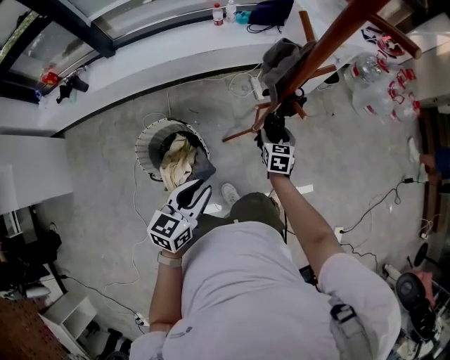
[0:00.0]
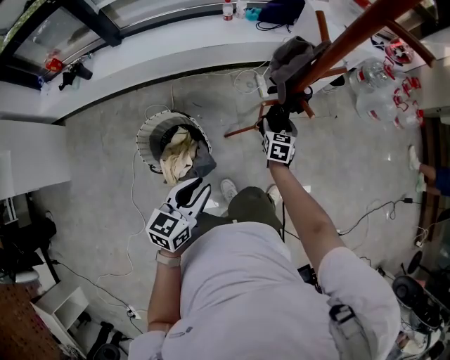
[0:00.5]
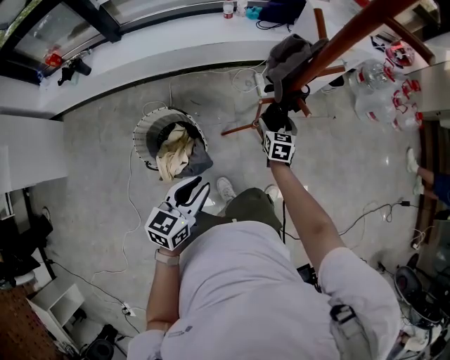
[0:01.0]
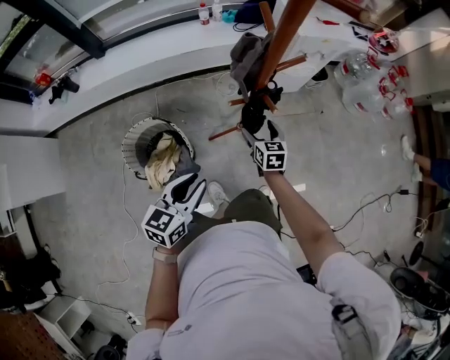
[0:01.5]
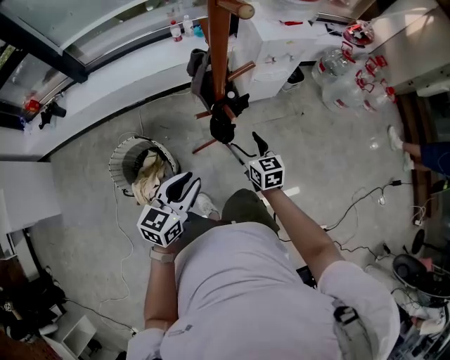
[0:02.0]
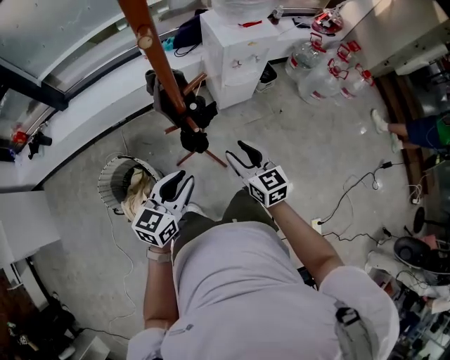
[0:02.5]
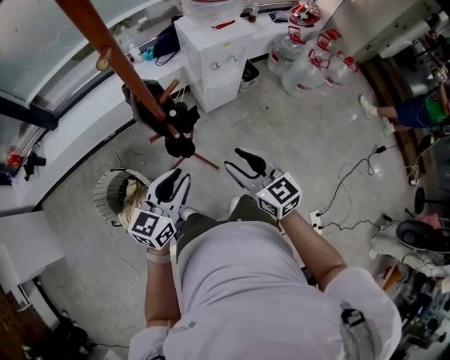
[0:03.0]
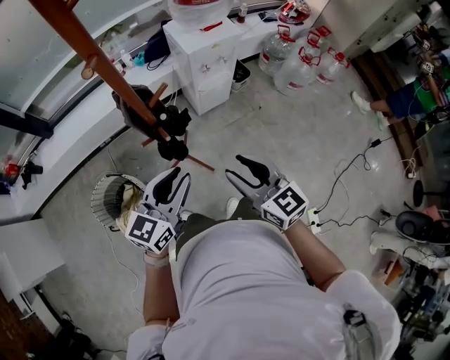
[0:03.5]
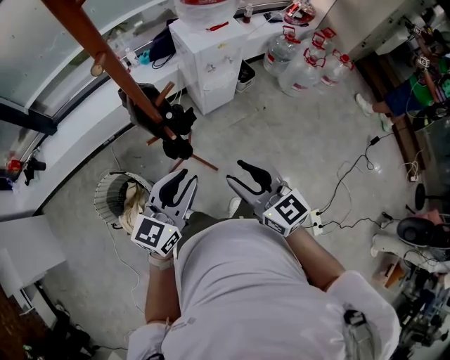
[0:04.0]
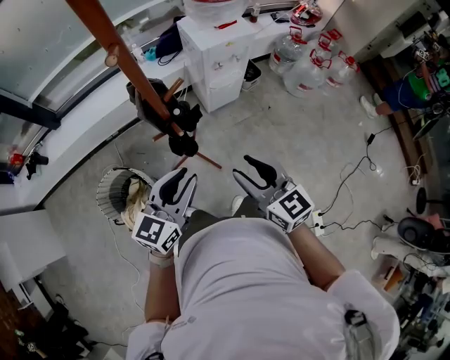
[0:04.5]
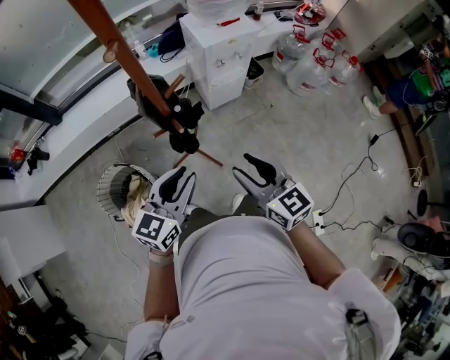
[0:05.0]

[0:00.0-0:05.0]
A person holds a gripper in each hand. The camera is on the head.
0:00.0 to 0:02.5: The right gripper goes approximately 25 cm upward and to the right, and swivels some 30 degrees, while the left gripper goes about 20 cm to the right and forward.
0:02.5 to 0:05.0: The right gripper goes some 10 cm upward and backward; the left gripper heads upward and to the right, covering approximately 10 cm.

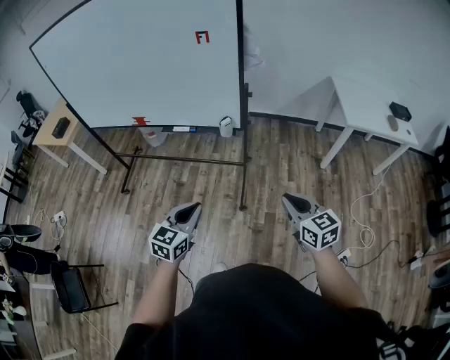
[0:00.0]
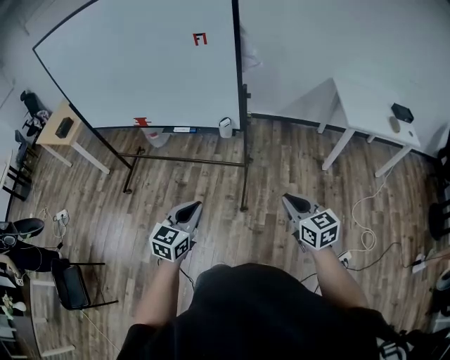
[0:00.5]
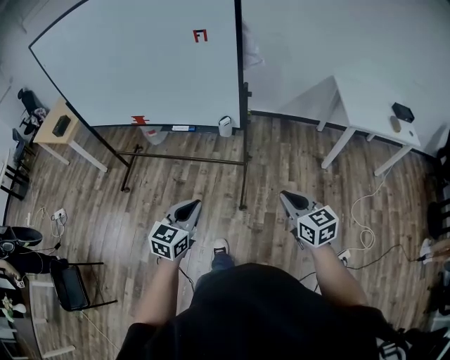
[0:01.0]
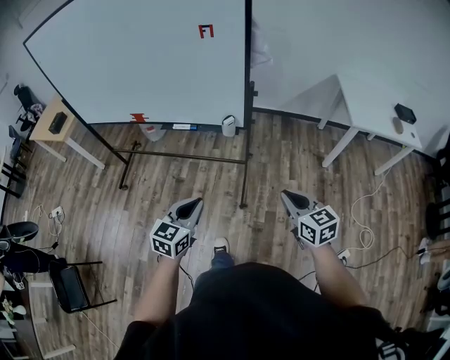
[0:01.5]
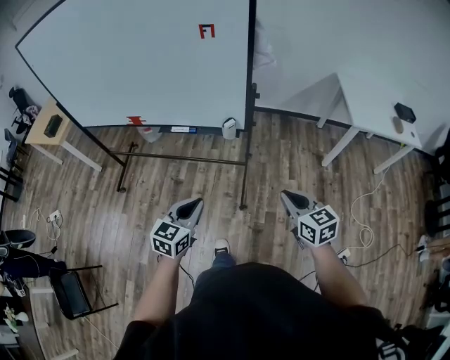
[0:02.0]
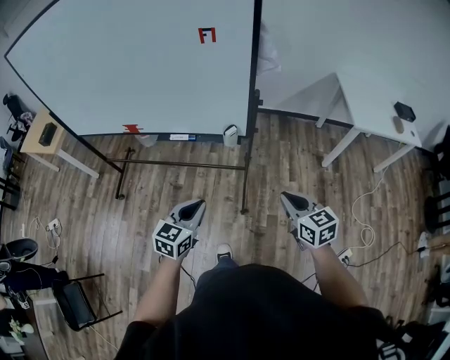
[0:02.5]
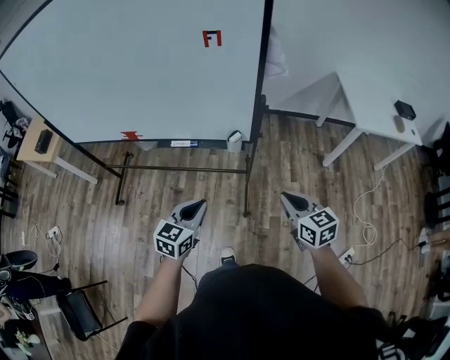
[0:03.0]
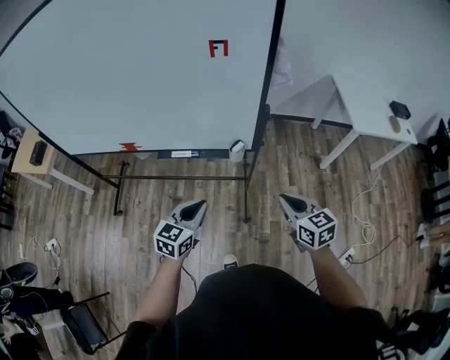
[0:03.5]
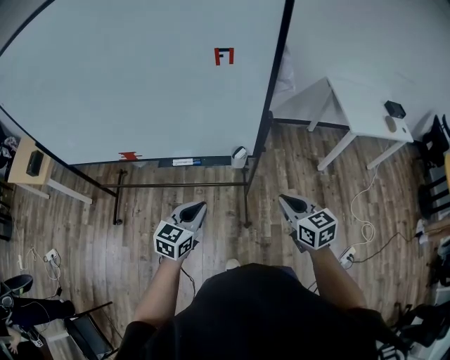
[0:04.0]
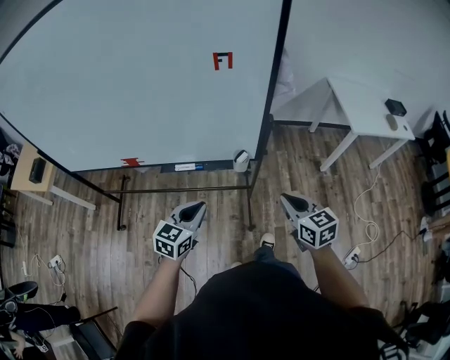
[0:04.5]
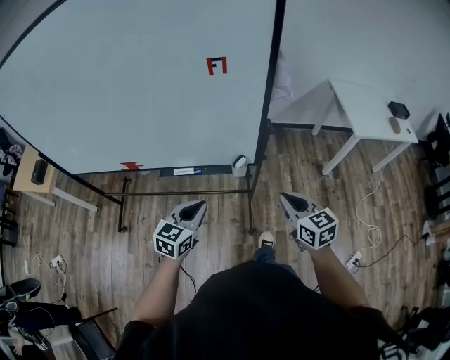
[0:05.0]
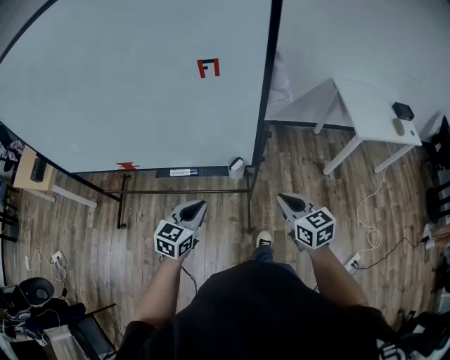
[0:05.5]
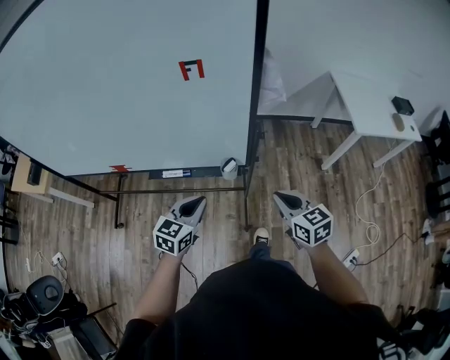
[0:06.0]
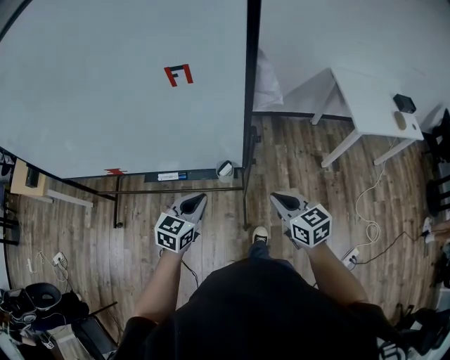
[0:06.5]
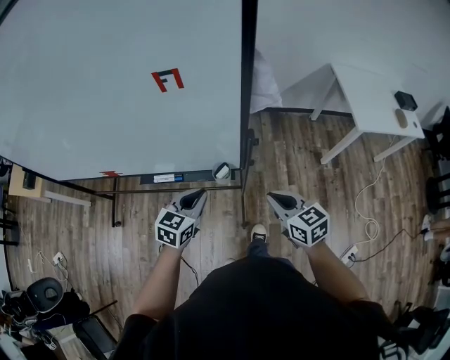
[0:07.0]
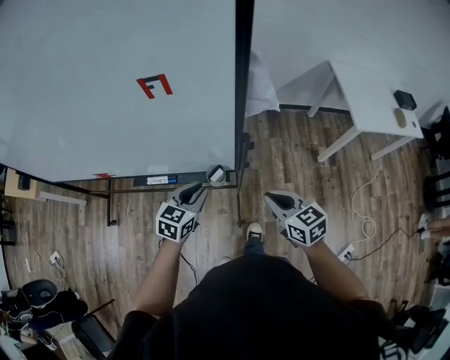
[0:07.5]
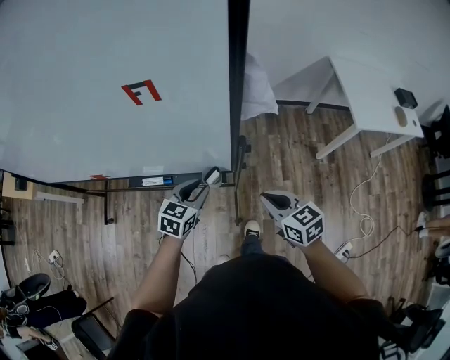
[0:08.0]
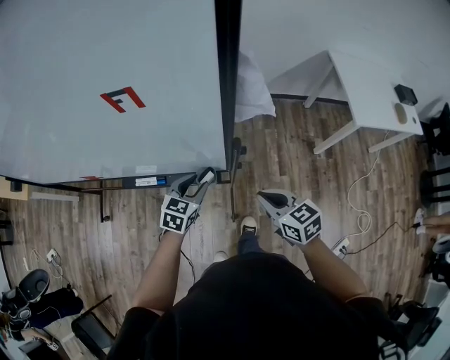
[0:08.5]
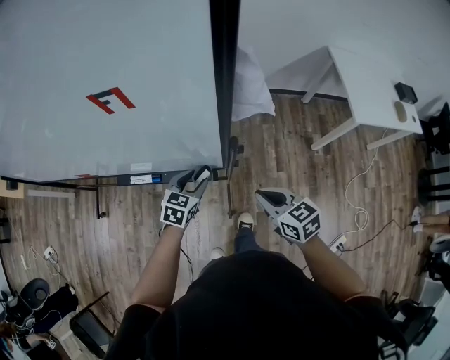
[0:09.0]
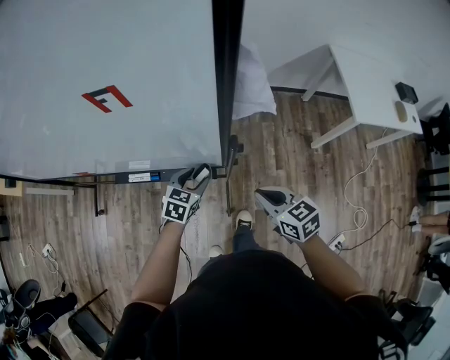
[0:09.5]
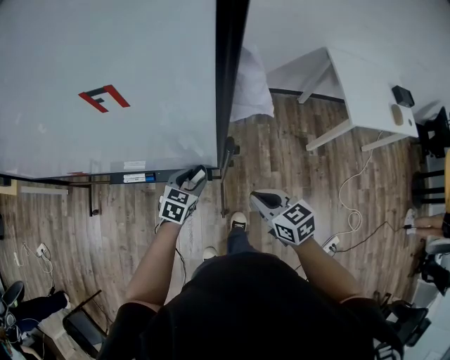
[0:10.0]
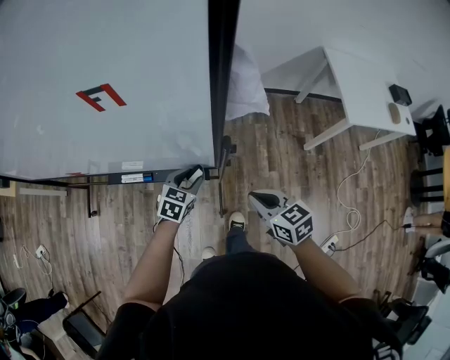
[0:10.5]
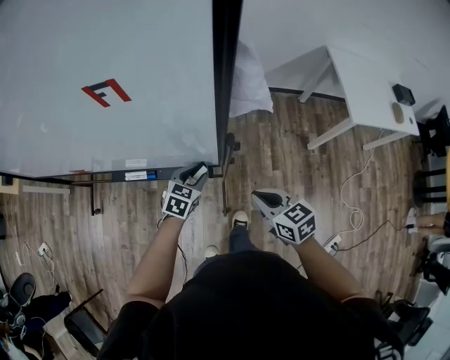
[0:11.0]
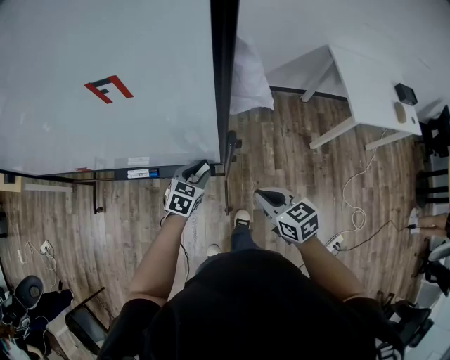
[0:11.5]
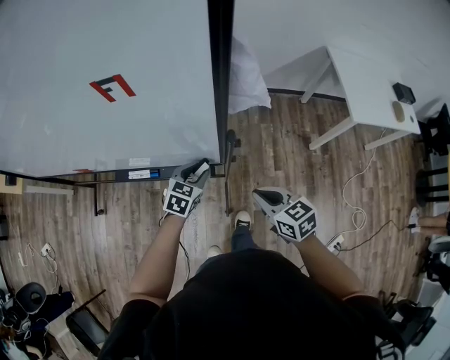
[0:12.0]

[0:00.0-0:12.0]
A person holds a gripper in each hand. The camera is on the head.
0:00.0 to 0:02.0: Both grippers travel together forward, approximately 10 cm.
0:02.0 to 0:04.0: Both grippers move forward and to the left, roughly 20 cm.
0:04.0 to 0:06.0: The left gripper shifts about 10 cm forward and to the right, while the right gripper is displaced forward by roughly 10 cm.
0:06.0 to 0:08.0: The right gripper heads forward, covering about 10 cm; the left gripper heads forward, downward and to the right, covering some 15 cm, and opens.
0:08.0 to 0:10.0: The left gripper is displaced downward by approximately 10 cm, and opens.
0:10.0 to 0:12.0: There are only small adjustments of the grippers.

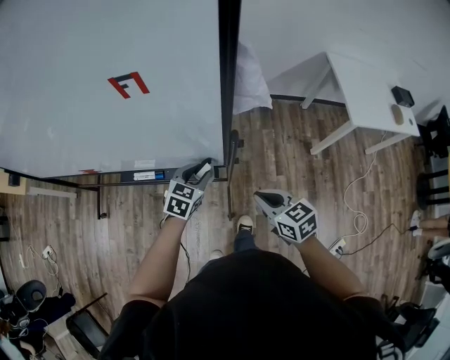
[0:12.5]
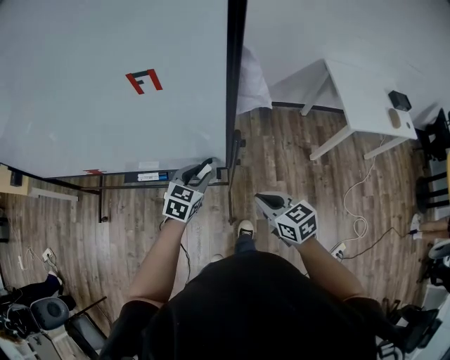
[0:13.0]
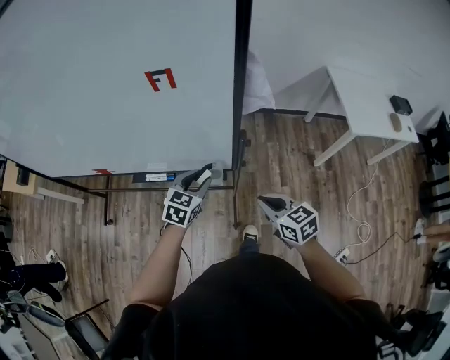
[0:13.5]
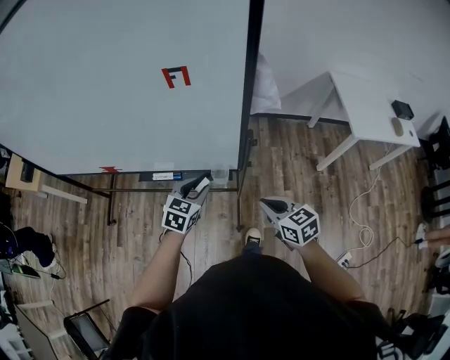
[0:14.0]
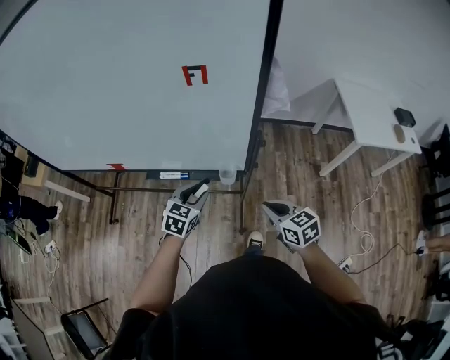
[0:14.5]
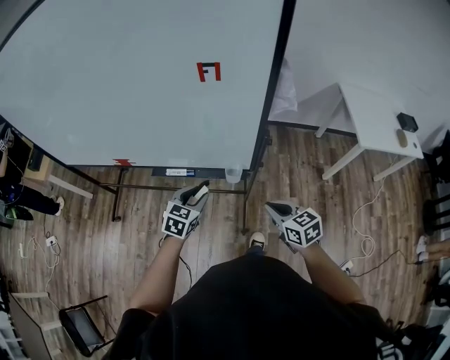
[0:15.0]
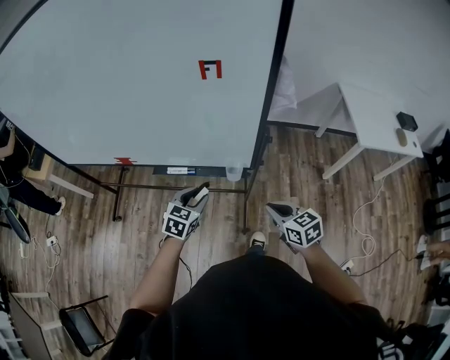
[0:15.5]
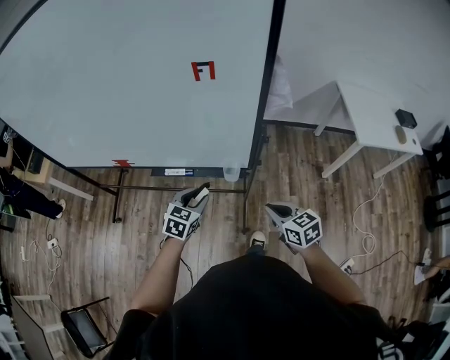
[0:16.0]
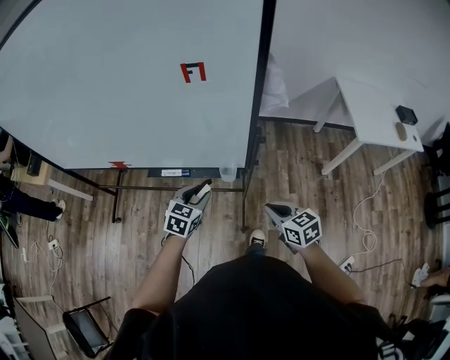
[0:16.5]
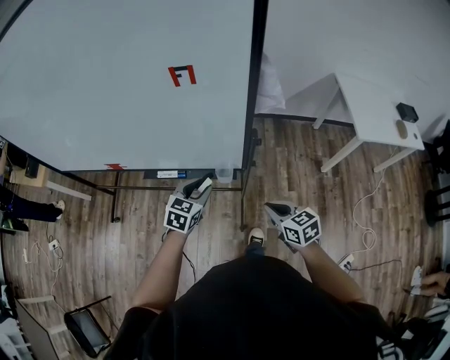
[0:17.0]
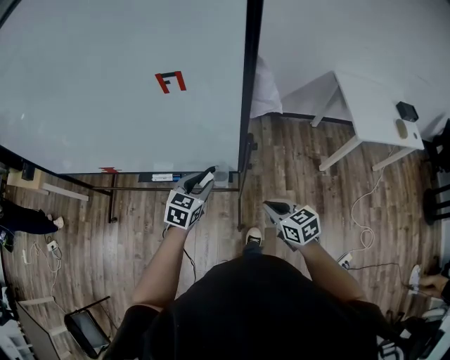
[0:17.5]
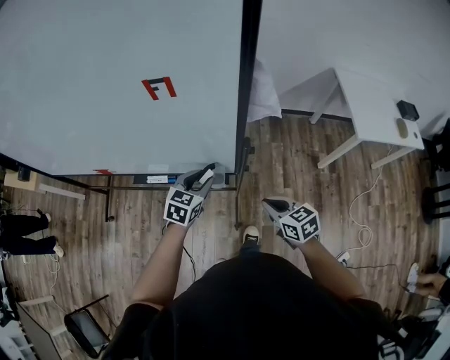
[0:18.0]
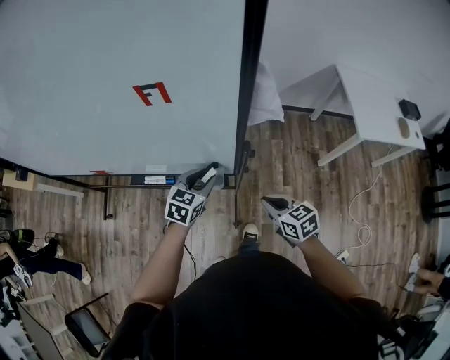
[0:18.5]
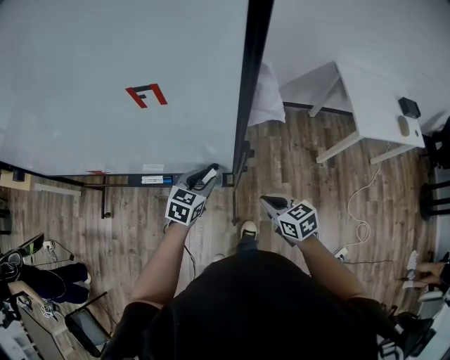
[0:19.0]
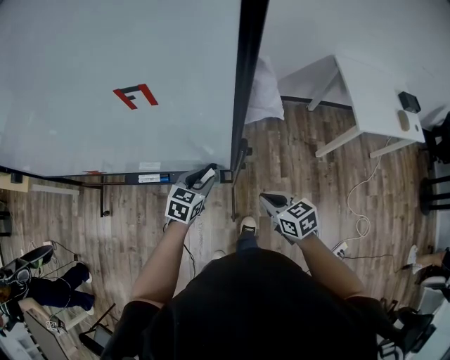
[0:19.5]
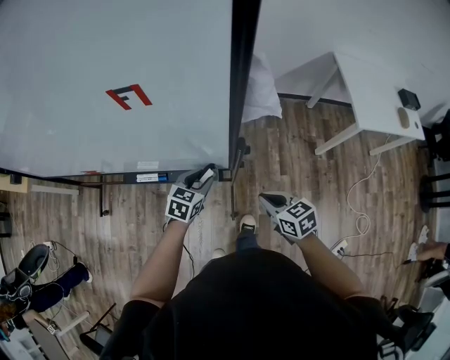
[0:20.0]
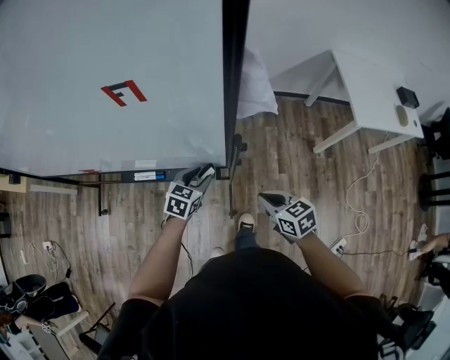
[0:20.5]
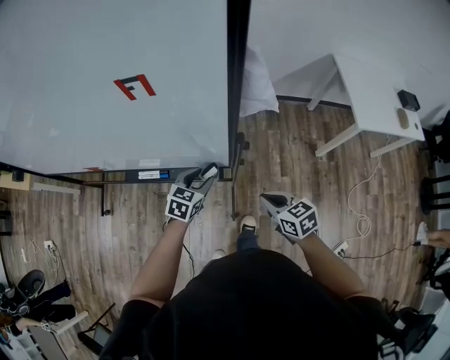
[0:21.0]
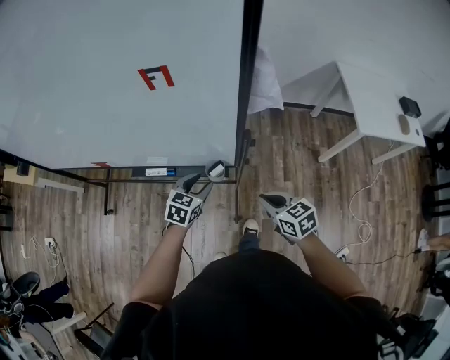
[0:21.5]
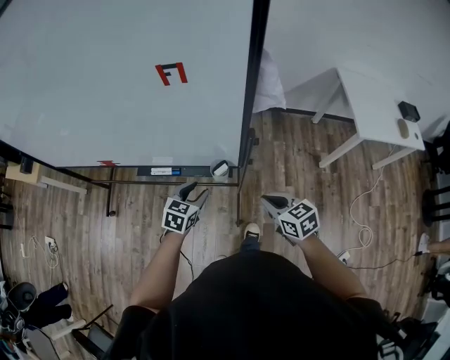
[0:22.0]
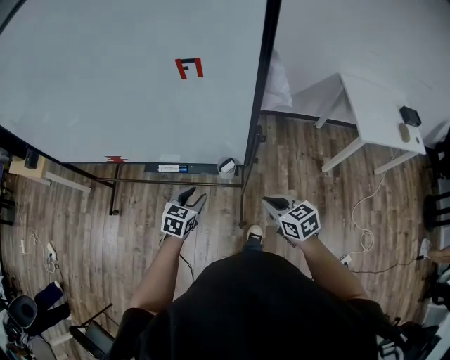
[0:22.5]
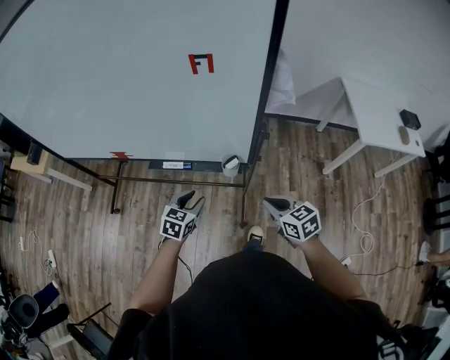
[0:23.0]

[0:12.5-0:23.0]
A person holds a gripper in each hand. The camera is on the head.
0:12.5 to 0:14.5: The left gripper is displaced to the left and backward by approximately 15 cm, while the right gripper shifts approximately 10 cm backward and to the left.
0:14.5 to 0:16.5: The grippers stay close to where they were, moving slightly.
0:16.5 to 0:19.0: The right gripper heads forward, covering approximately 10 cm, while the left gripper is displaced forward and to the right by about 15 cm.
0:19.0 to 0:21.0: The grippers stay close to where they were, moving slightly.
0:21.0 to 0:23.0: The right gripper travels to the left and backward by approximately 10 cm, while the left gripper shifts roughly 15 cm to the left and backward.
